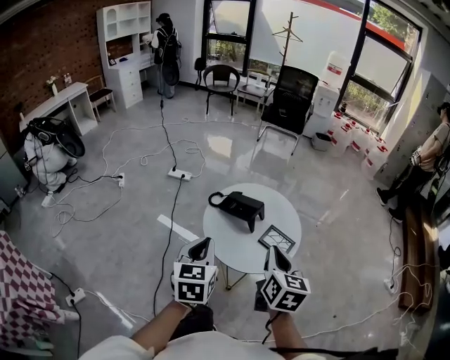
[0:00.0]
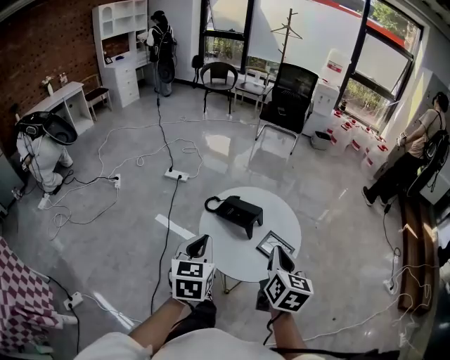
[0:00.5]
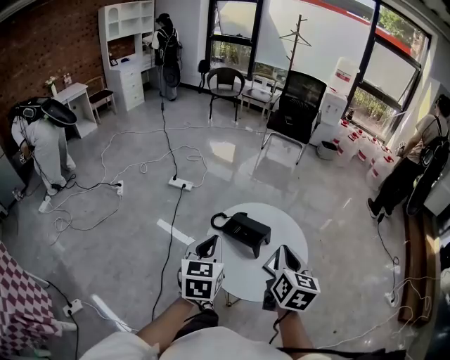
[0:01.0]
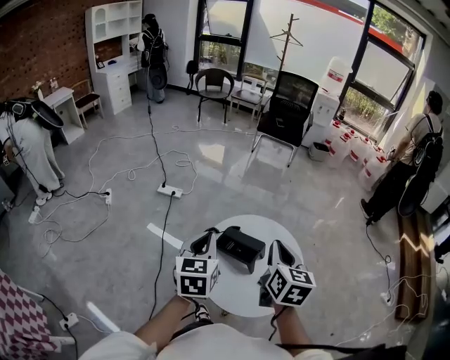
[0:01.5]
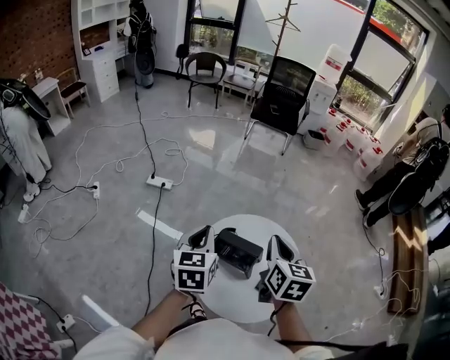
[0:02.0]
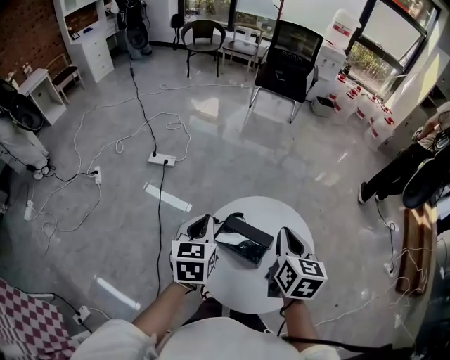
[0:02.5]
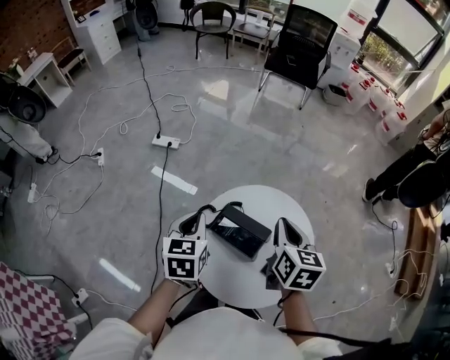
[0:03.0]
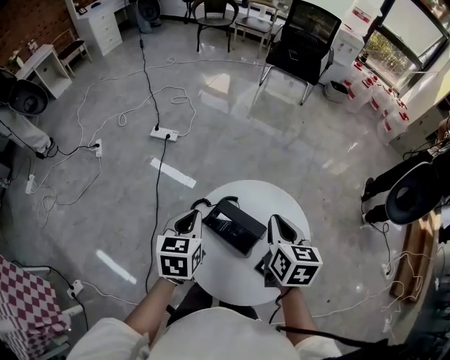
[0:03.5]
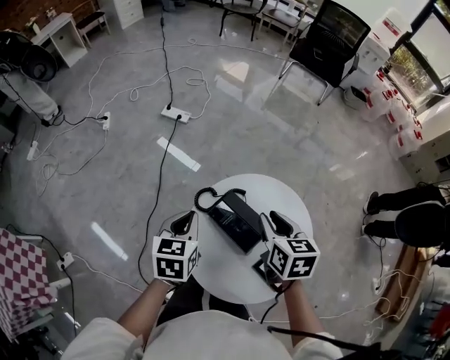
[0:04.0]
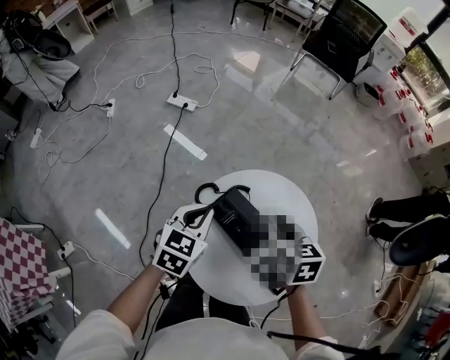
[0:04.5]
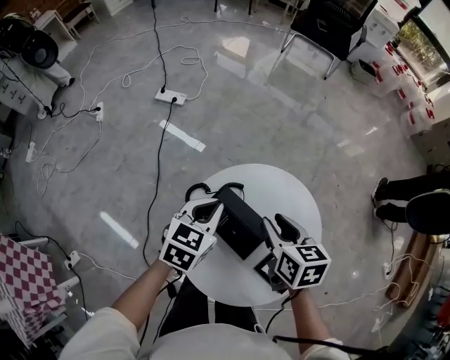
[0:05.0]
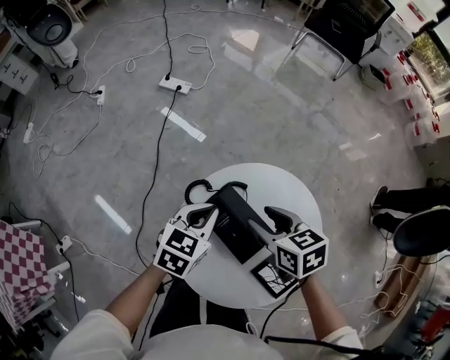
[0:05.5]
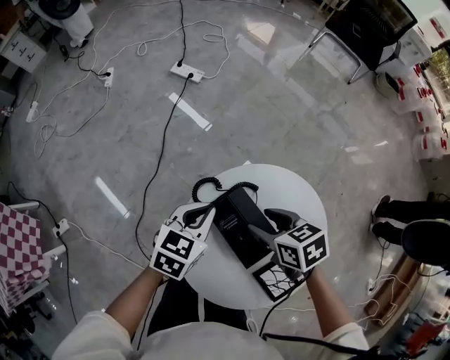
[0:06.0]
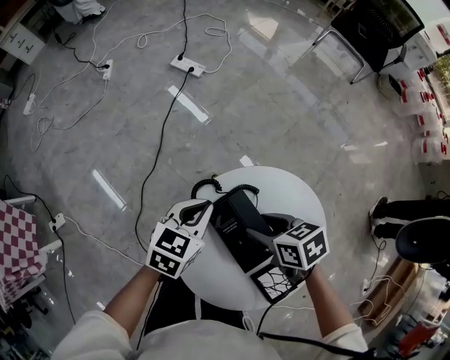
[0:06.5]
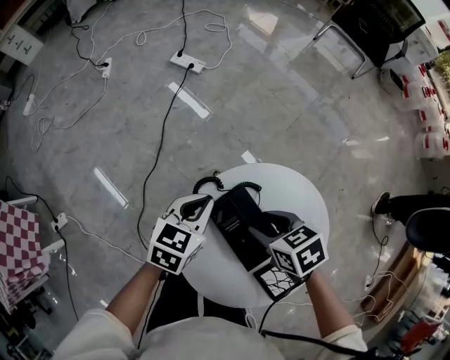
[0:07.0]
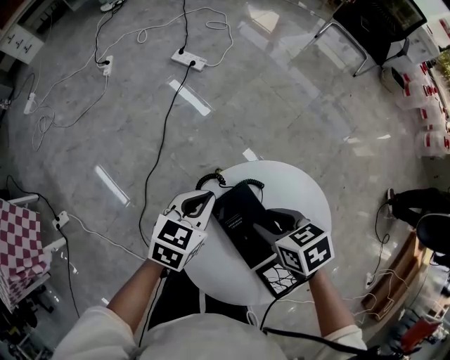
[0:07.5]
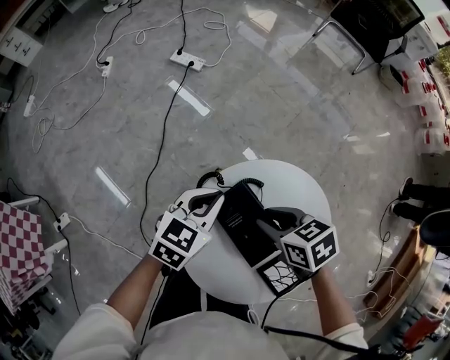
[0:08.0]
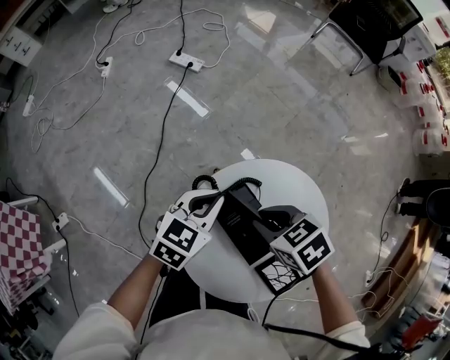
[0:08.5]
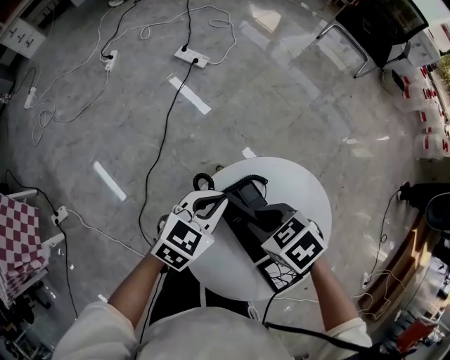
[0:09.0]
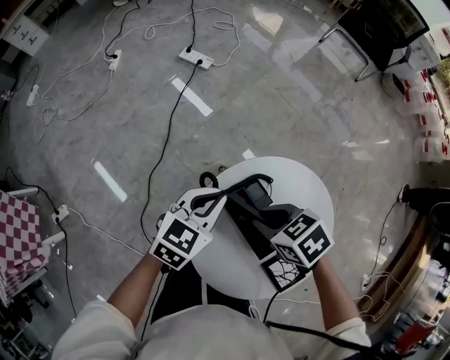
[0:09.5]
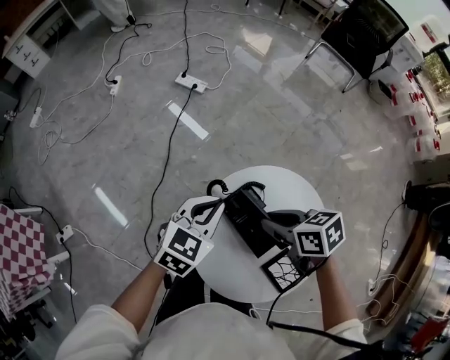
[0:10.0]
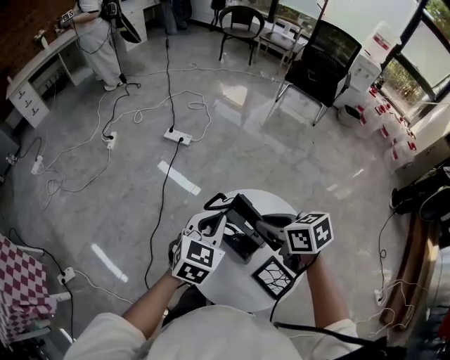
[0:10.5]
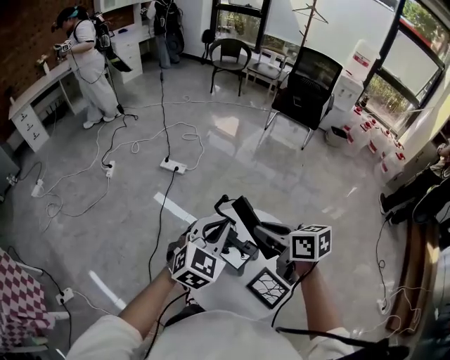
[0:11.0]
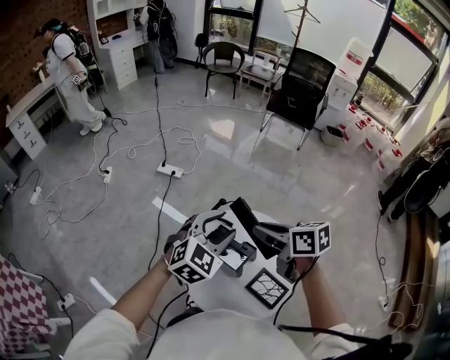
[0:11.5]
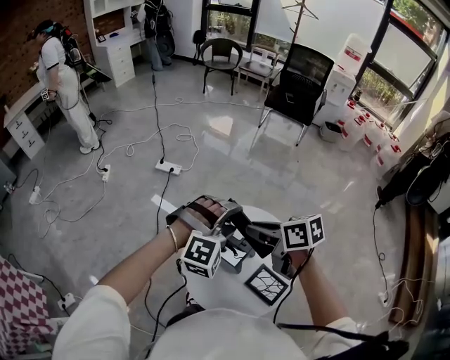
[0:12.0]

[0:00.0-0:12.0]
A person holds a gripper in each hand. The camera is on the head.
0:00.0 to 0:02.0: The two grippers go some 25 cm forward.
0:02.0 to 0:04.0: Both grippers travel together downward, some 10 cm. The right gripper swivels about 30 degrees, and opens up.
0:04.0 to 0:06.0: The grippers both shift downward by about 10 cm. The right gripper changes its angle by some 40 degrees, and opens up.
0:06.0 to 0:08.0: The right gripper closes its fingers.
0:08.0 to 0:10.0: The left gripper shifts by roughly 5 cm.
0:10.0 to 0:12.0: The right gripper moves upward, roughly 10 cm, and turns by roughly 30 degrees. Meanwhile the left gripper is displaced to the right and upward by approximately 15 cm, rotates around the line of its fingers by approximately 80 degrees, clockwise from behind, and opens its fingers.

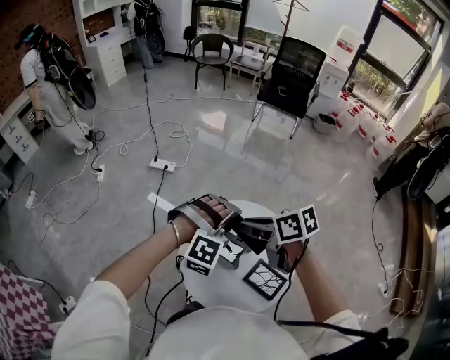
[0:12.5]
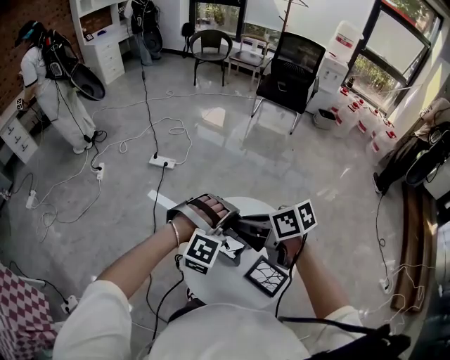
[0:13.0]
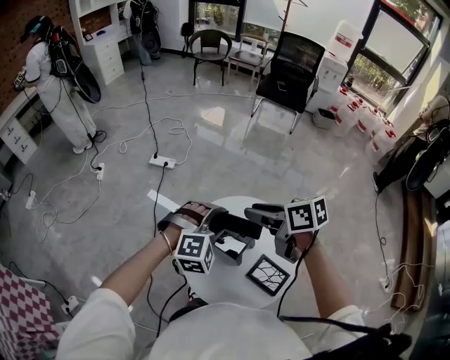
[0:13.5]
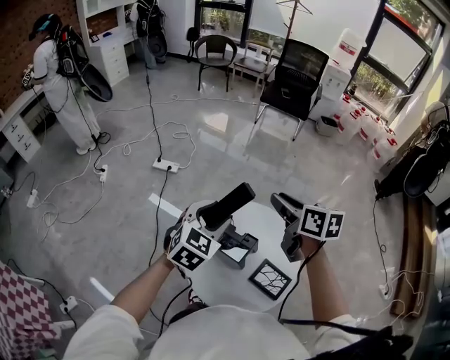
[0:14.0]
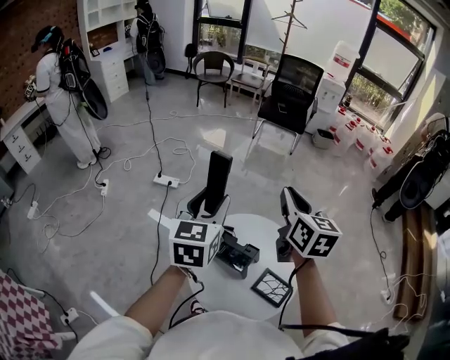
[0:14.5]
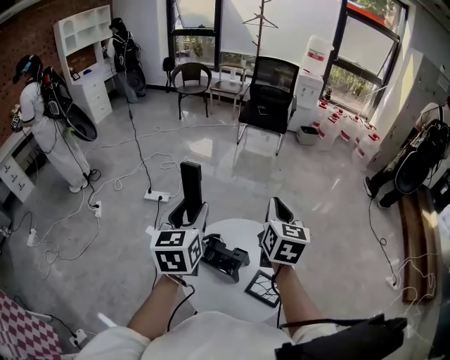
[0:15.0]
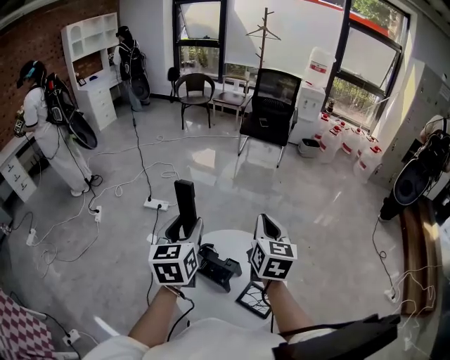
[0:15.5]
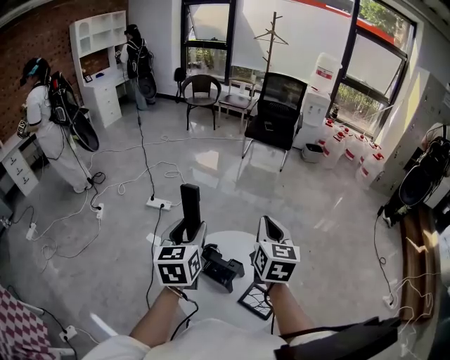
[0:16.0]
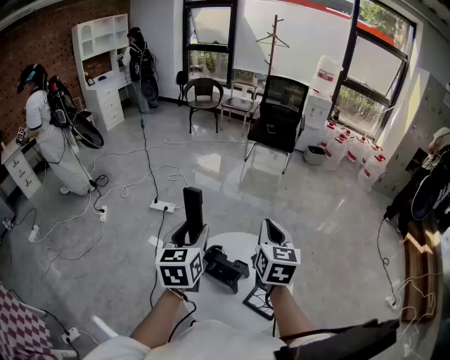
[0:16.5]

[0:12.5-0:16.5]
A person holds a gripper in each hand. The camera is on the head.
0:12.5 to 0:14.5: The right gripper goes about 15 cm upward, to the right and forward, changes its angle by approximately 60 degrees, and opens and closes again, while the left gripper shifts roughly 20 cm upward, to the left and forward, and twists some 90 degrees counterclockwise, seen from behind.
0:14.5 to 0:16.5: There are only small adjustments of the grippers.

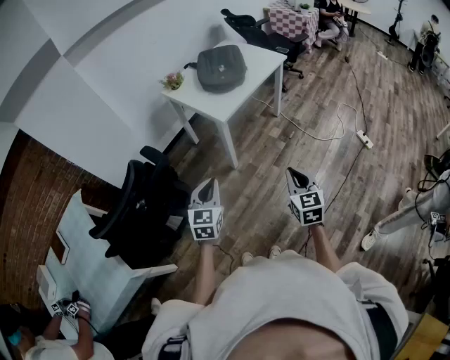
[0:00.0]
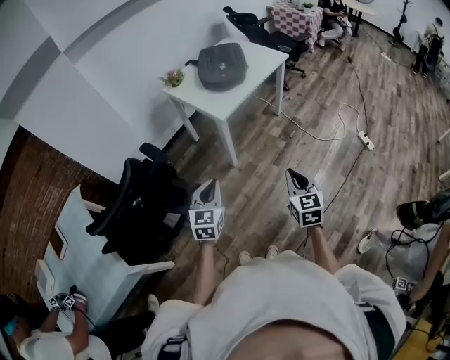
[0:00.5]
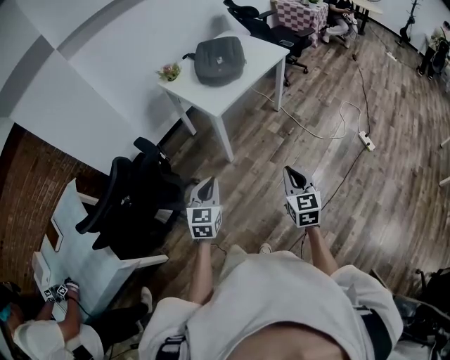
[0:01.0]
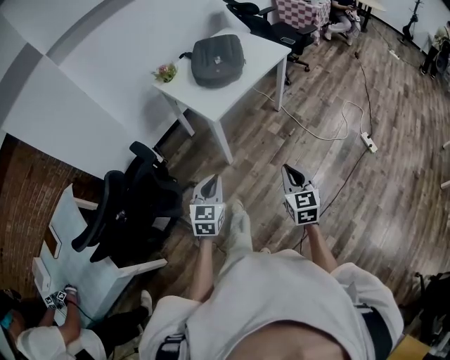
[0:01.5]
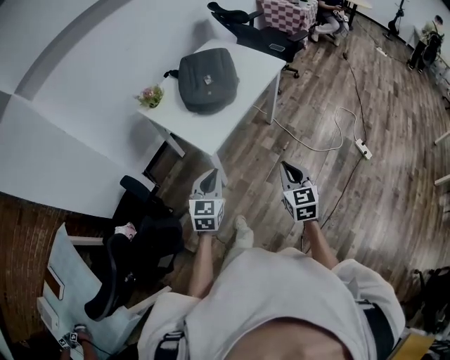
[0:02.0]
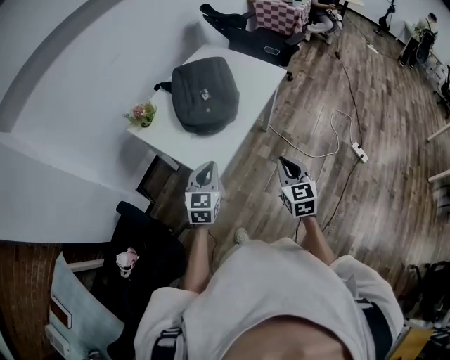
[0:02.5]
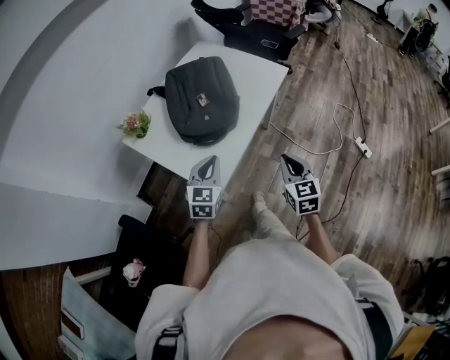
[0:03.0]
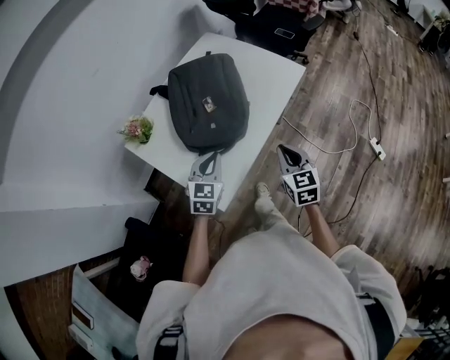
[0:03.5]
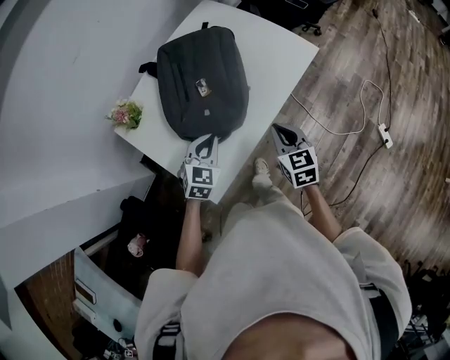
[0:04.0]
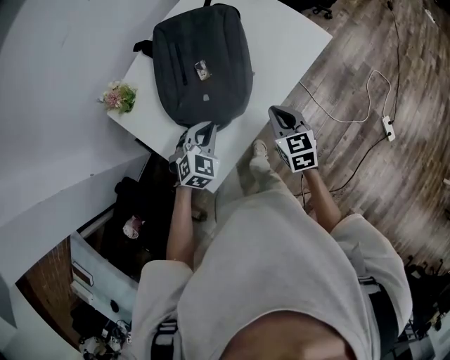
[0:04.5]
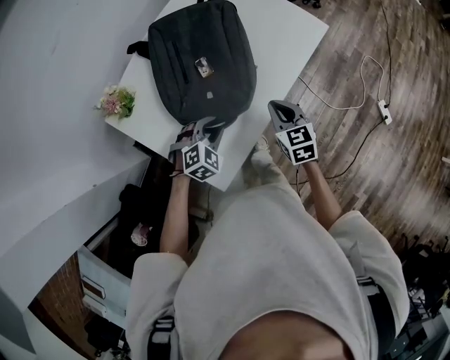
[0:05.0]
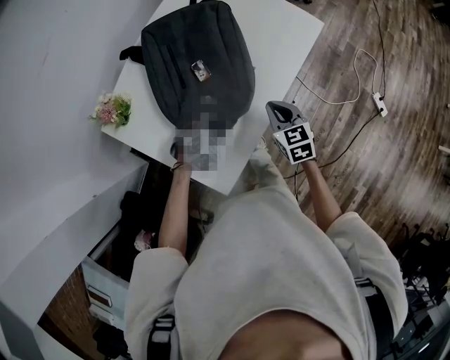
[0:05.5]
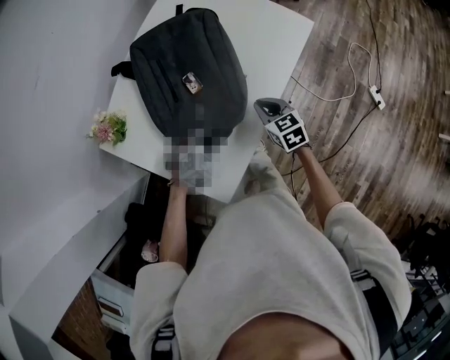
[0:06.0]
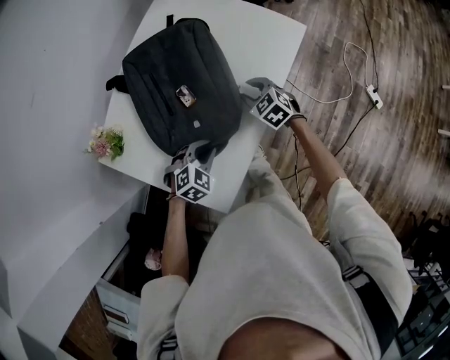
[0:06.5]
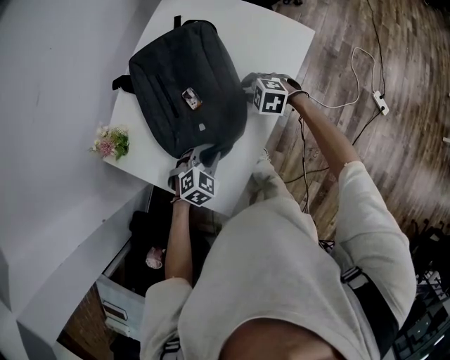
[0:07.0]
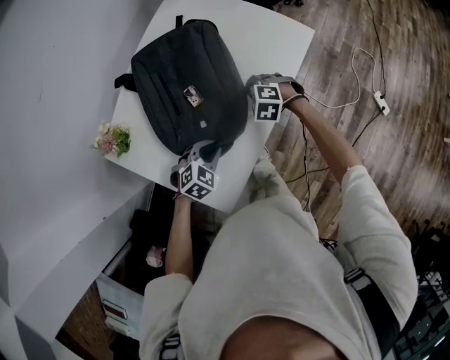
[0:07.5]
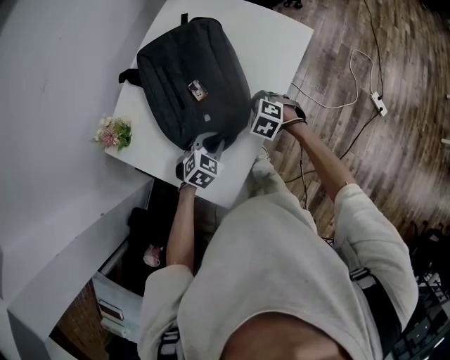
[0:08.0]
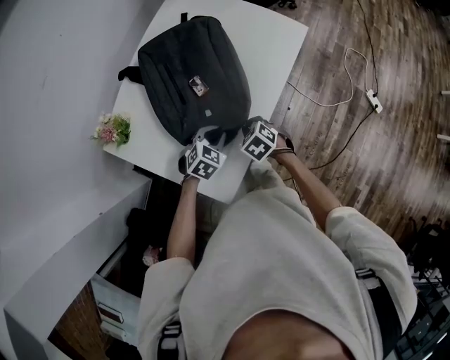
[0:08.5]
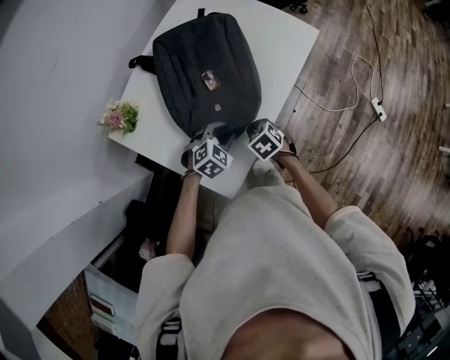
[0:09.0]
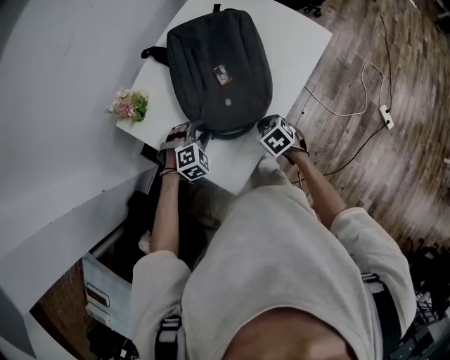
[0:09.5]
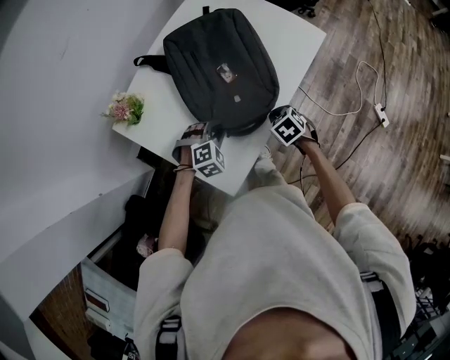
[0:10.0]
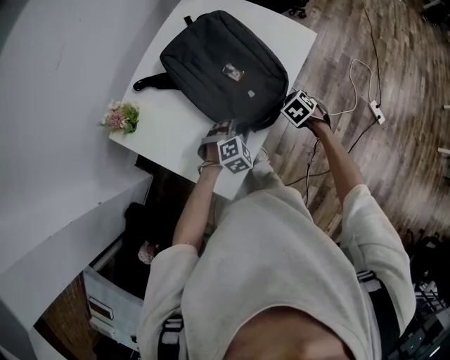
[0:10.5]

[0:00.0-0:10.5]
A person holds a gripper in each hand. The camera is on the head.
0:00.0 to 0:02.0: The grippers both shift forward by approximately 30 cm.
0:02.0 to 0:04.0: The two grippers travel together, forward, approximately 40 cm. The left gripper changes its angle by some 20 degrees.
0:04.0 to 0:06.5: The left gripper is displaced downward by roughly 10 cm, changes its angle by some 40 degrees, and opens and closes again. Meanwhile the right gripper goes roughly 20 cm forward, downward and to the left, swivels roughly 30 degrees, and opens its fingers.
0:06.5 to 0:08.5: The right gripper moves backward, some 15 cm, and closes.
0:08.5 to 0:10.5: The left gripper changes its angle by approximately 20 degrees; the right gripper shifts by about 15 cm.
